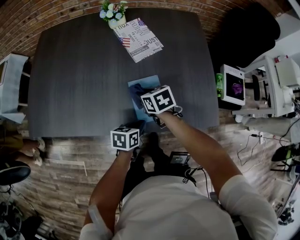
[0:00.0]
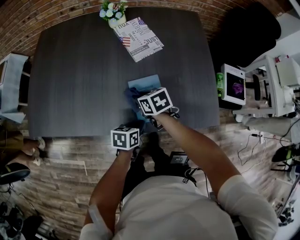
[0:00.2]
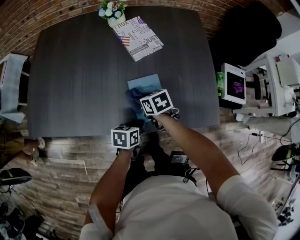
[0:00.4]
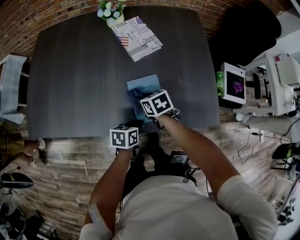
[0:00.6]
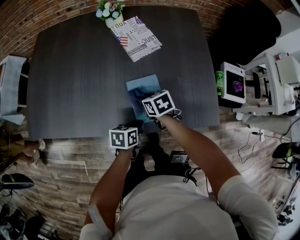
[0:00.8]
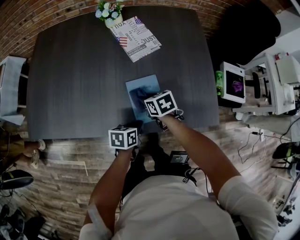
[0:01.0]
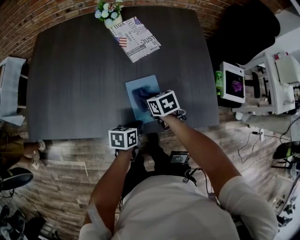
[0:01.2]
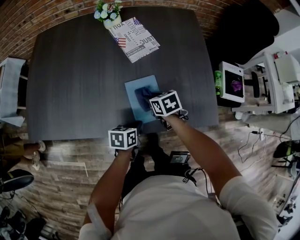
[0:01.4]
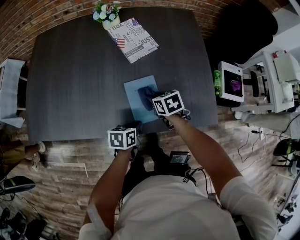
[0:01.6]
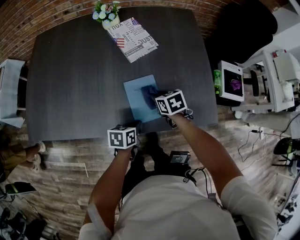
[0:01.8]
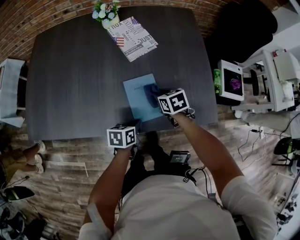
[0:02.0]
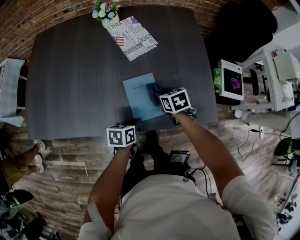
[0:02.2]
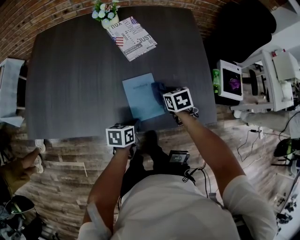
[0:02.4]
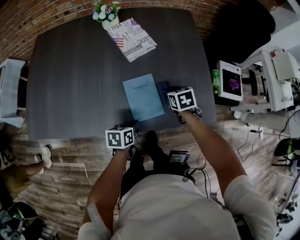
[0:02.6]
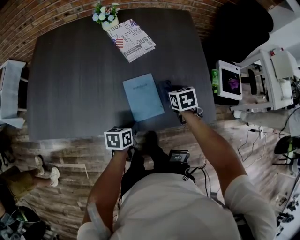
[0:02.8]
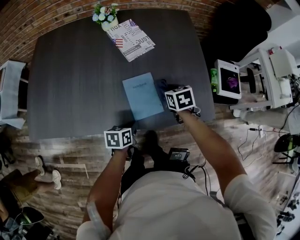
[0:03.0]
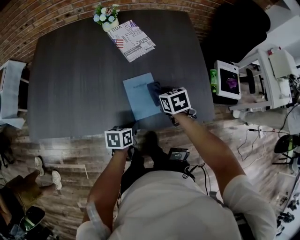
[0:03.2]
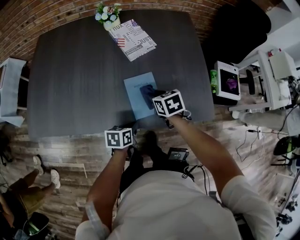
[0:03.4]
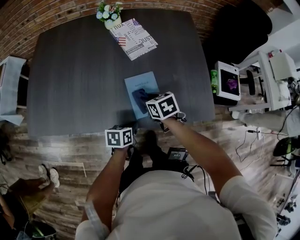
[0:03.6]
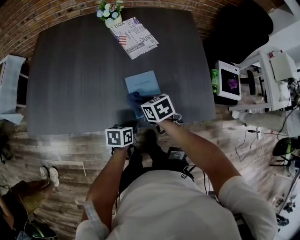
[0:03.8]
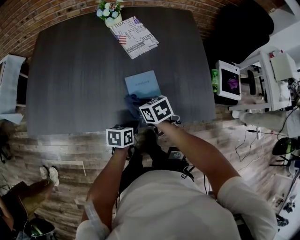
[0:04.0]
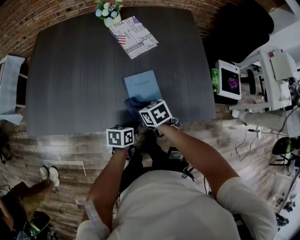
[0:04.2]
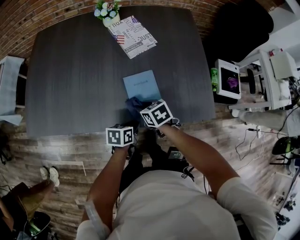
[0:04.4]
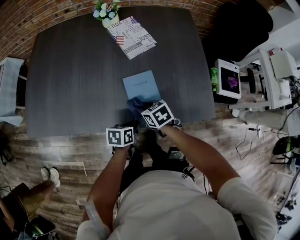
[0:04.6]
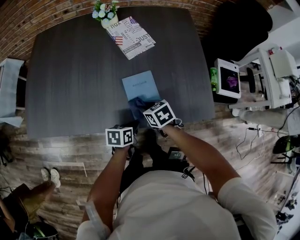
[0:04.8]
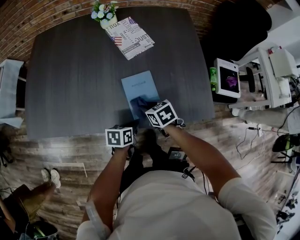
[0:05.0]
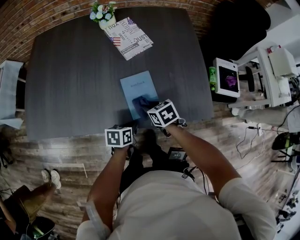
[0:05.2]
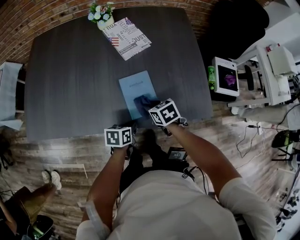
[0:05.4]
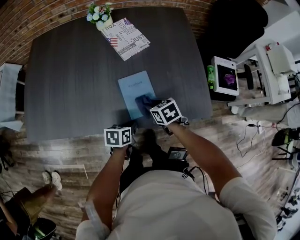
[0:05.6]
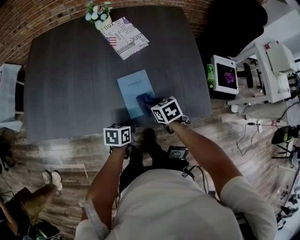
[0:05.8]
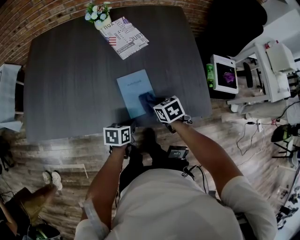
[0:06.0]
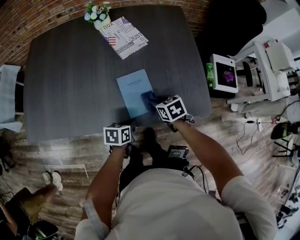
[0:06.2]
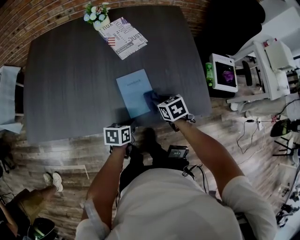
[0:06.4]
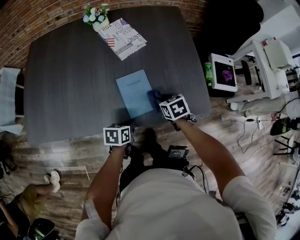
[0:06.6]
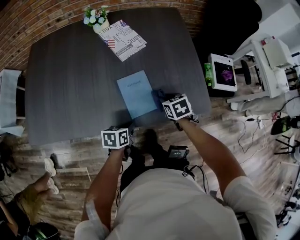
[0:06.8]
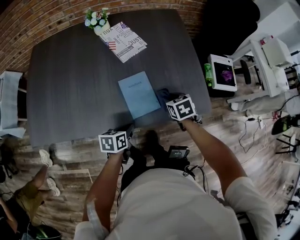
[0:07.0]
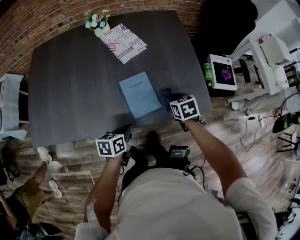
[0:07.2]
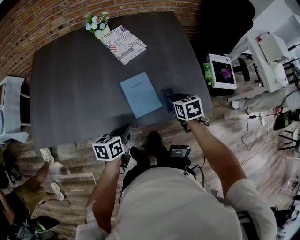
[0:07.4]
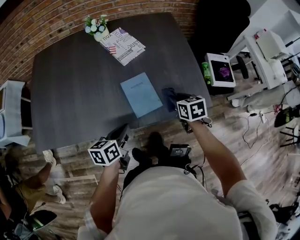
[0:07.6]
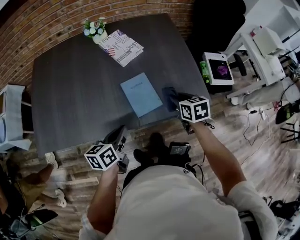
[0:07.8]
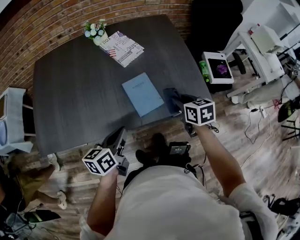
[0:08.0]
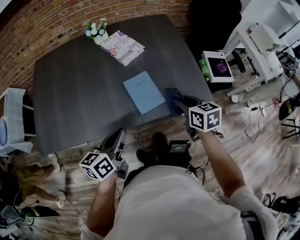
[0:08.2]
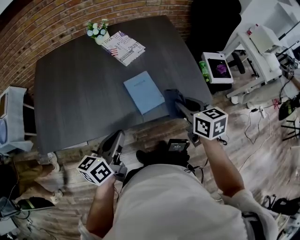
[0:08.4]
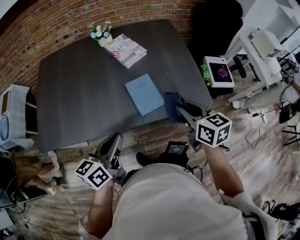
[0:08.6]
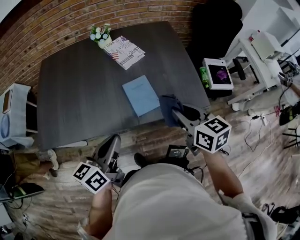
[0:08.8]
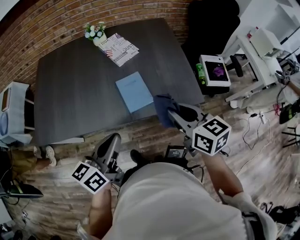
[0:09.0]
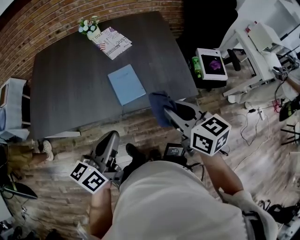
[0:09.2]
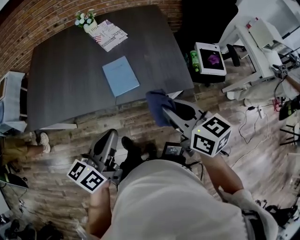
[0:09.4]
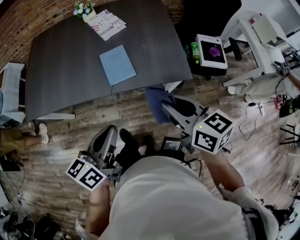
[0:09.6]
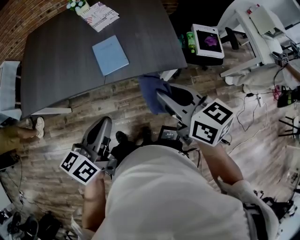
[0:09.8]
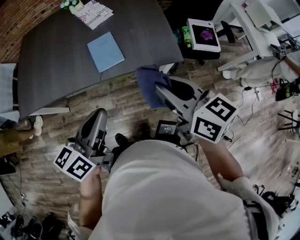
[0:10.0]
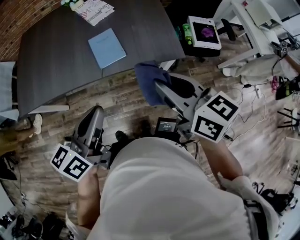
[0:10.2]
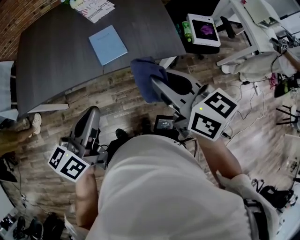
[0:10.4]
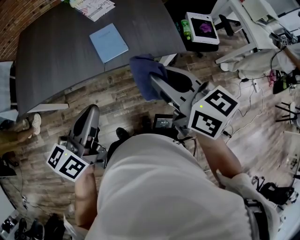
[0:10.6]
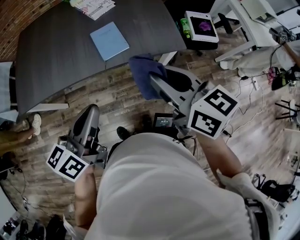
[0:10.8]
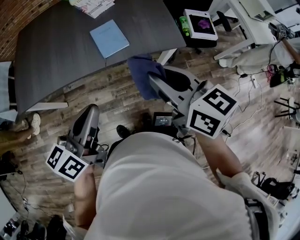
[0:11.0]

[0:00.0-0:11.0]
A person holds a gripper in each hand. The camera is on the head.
0:00.0 to 0:01.6: The right gripper moves to the right, approximately 5 cm.
0:03.2 to 0:04.8: The right gripper is displaced to the left and backward by approximately 10 cm.
0:04.8 to 0:06.2: The right gripper goes roughly 10 cm to the right.
0:06.2 to 0:07.8: The left gripper is displaced upward and to the left by roughly 15 cm, and turns by approximately 20 degrees. The right gripper goes some 15 cm upward and to the right, and swivels some 20 degrees.
0:07.8 to 0:09.4: The right gripper travels backward and upward by about 25 cm, and rotates approximately 30 degrees. Meanwhile the left gripper travels upward, backward and to the right by approximately 20 cm.
0:09.4 to 0:11.0: Both grippers travel together backward, roughly 5 cm.

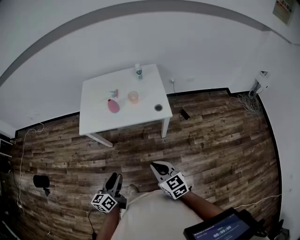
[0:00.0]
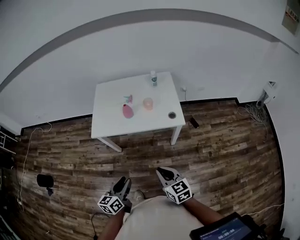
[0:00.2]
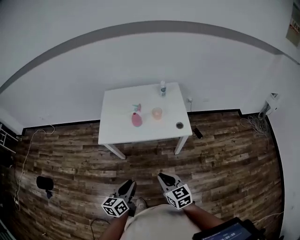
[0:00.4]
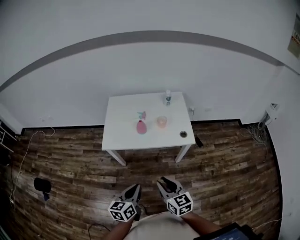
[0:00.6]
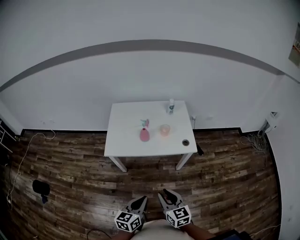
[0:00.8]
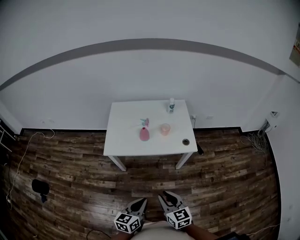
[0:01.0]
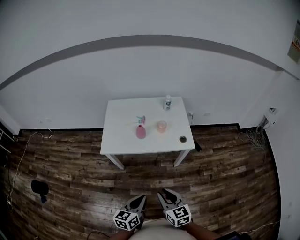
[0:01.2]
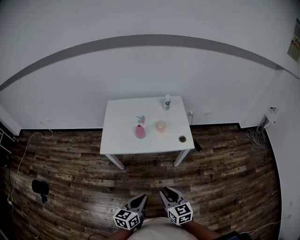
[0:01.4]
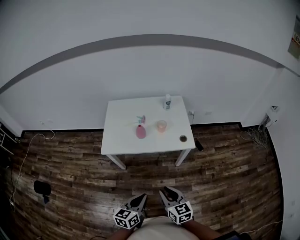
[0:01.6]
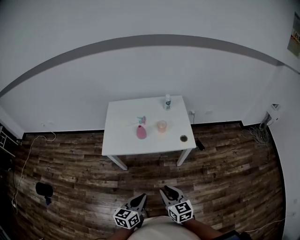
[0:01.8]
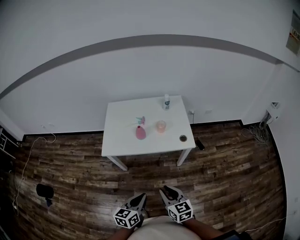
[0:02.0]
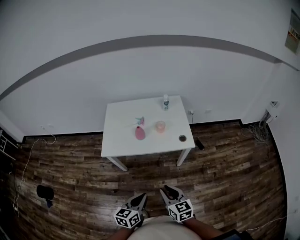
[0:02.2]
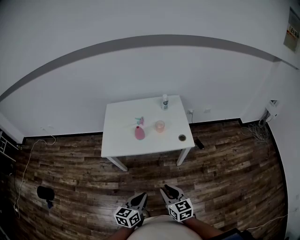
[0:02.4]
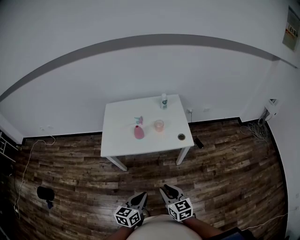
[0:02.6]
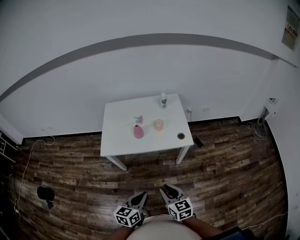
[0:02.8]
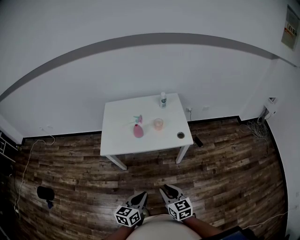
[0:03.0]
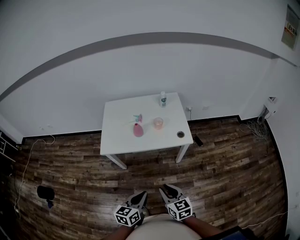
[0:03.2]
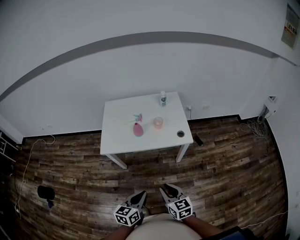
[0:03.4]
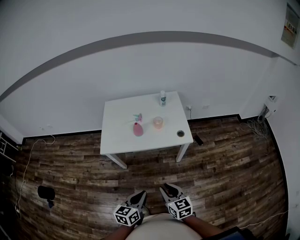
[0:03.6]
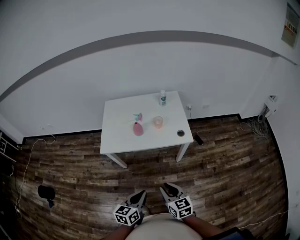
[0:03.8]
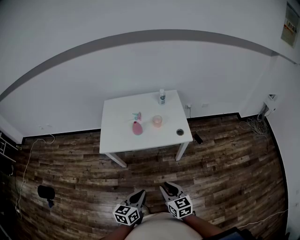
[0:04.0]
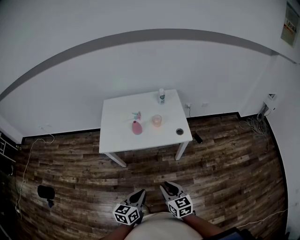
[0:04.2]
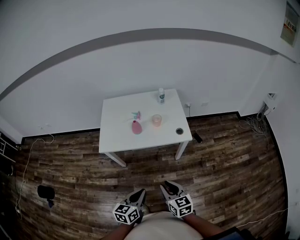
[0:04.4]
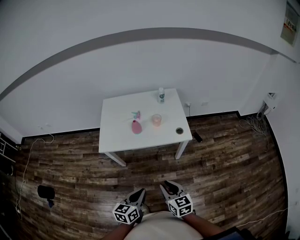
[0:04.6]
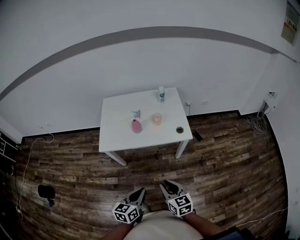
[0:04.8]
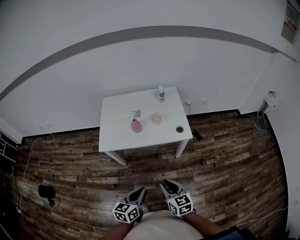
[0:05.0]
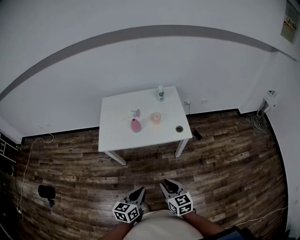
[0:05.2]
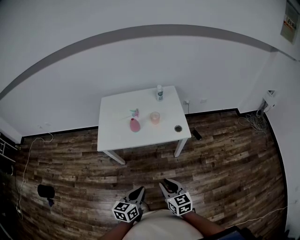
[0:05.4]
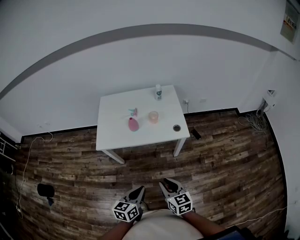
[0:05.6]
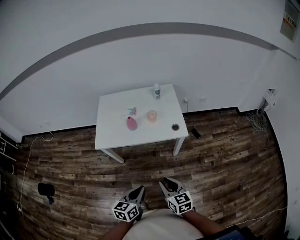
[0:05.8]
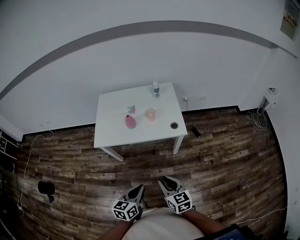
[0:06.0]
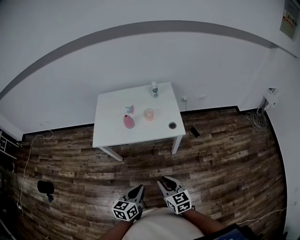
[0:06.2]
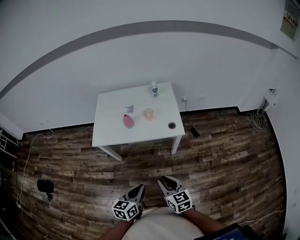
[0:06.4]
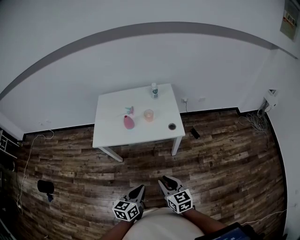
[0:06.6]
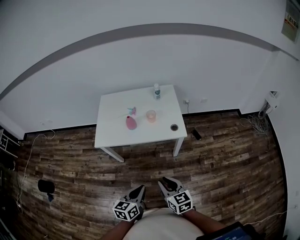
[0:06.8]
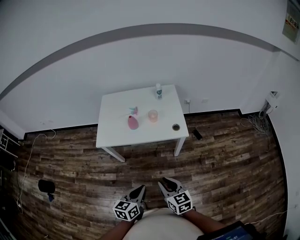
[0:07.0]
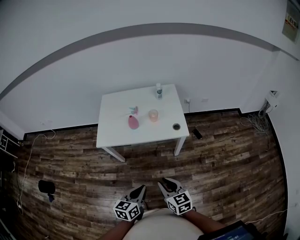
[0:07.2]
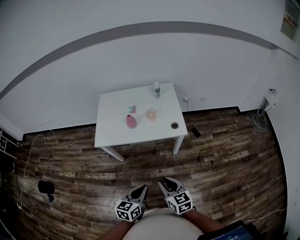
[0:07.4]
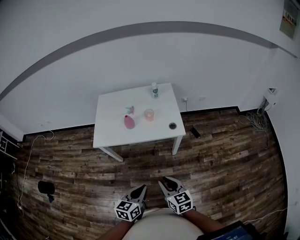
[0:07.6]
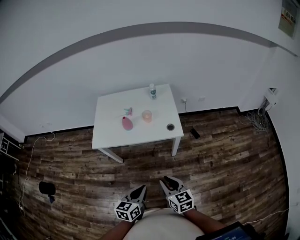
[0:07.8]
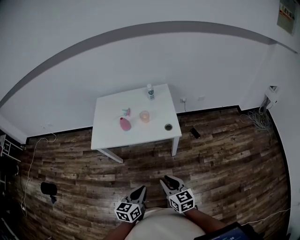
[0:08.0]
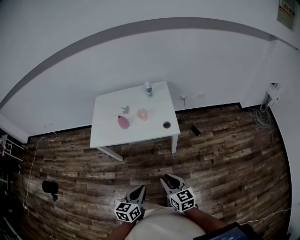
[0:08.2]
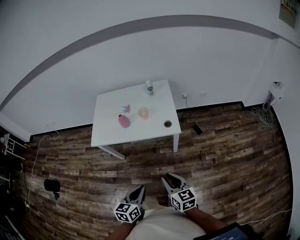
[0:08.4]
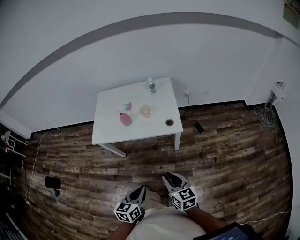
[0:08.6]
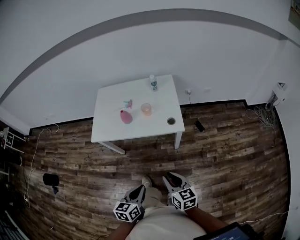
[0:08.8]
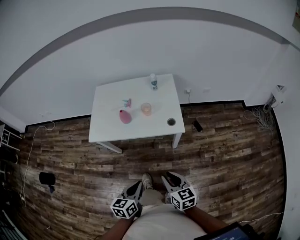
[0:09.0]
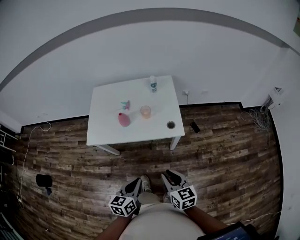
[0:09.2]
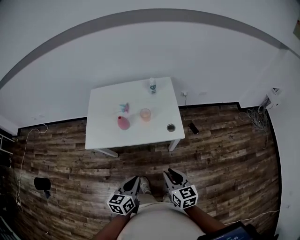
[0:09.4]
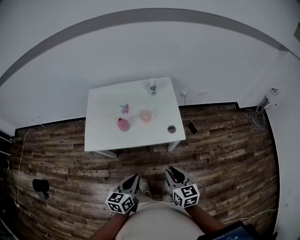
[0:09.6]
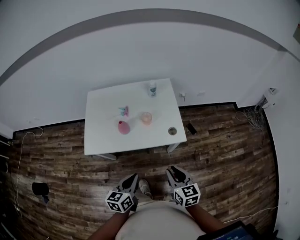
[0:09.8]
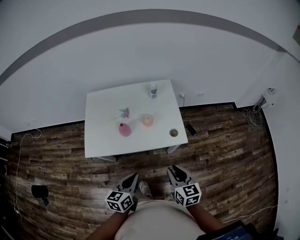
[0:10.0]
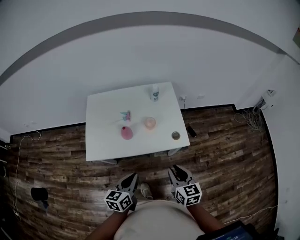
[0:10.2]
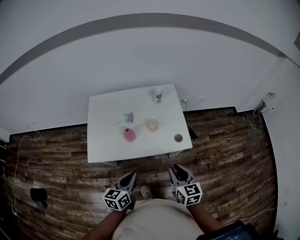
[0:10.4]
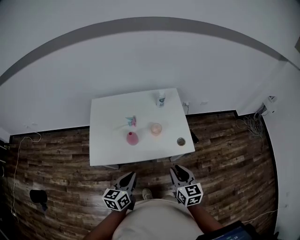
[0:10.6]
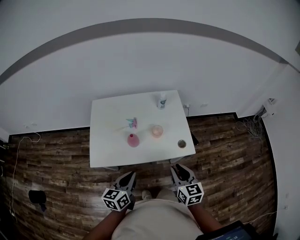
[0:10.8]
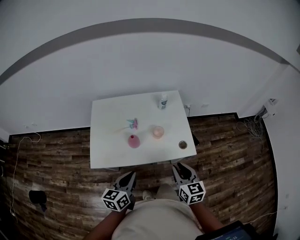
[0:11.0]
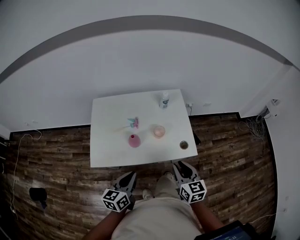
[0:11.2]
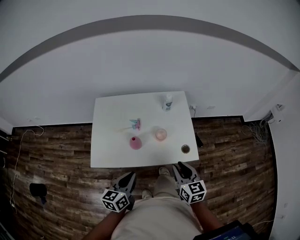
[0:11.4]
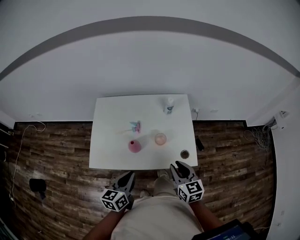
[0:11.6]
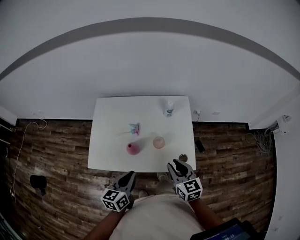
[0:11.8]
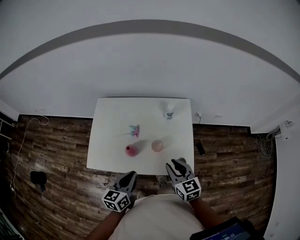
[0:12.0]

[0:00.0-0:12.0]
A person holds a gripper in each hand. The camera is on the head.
0:00.0 to 0:01.6: The left gripper closes; the right gripper is displaced to the left by roughly 10 cm.
0:01.6 to 0:03.0: The grippers make only small movements.
0:03.0 to 0:04.4: Both grippers stay put.
0:04.4 to 0:06.0: The left gripper heads to the right, covering approximately 5 cm.
0:06.0 to 0:07.6: The grippers move only a little.
0:07.6 to 0:09.0: The left gripper ends up about 5 cm from where it was. Meanwhile the right gripper goes roughly 10 cm to the right and forward.
0:09.0 to 0:10.4: Both grippers travel together forward and to the left, some 20 cm.
0:10.4 to 0:12.0: Both grippers move forward, approximately 20 cm. The right gripper rotates approximately 20 degrees.

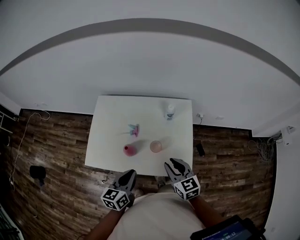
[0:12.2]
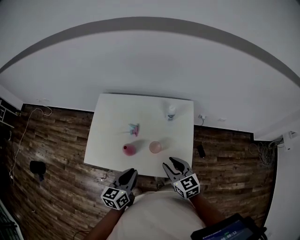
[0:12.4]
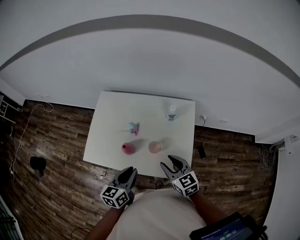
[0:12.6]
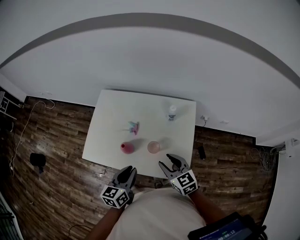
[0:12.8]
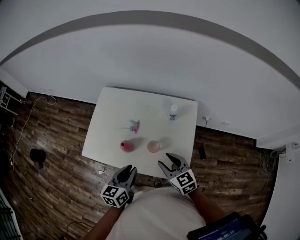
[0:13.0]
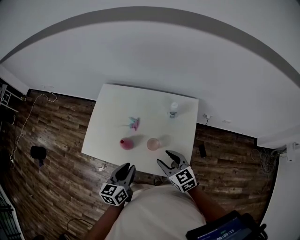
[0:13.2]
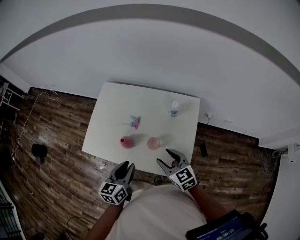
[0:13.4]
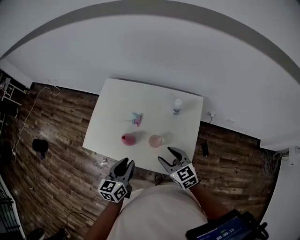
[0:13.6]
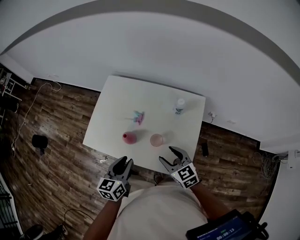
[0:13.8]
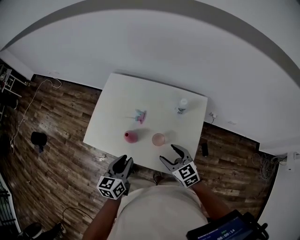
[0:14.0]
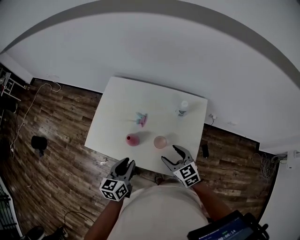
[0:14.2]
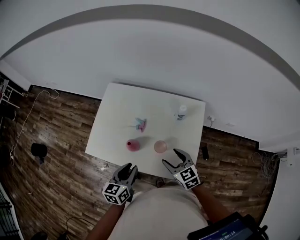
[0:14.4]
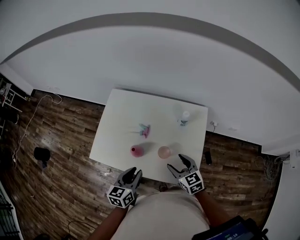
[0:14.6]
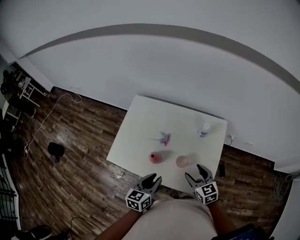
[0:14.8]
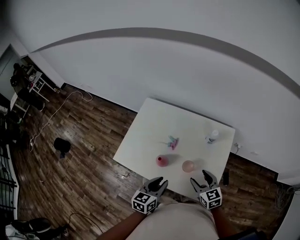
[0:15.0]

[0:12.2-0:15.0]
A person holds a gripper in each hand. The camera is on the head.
0:12.2 to 0:13.6: The left gripper opens. Meanwhile the right gripper is displaced downward by approximately 5 cm, and turns by some 20 degrees.
0:13.6 to 0:15.0: There are only small adjustments of the grippers.
